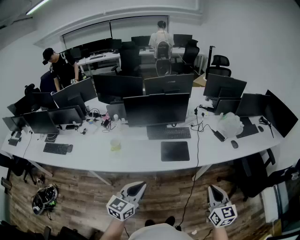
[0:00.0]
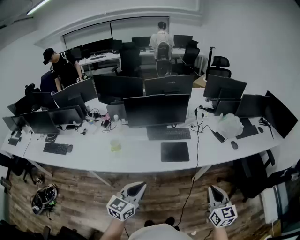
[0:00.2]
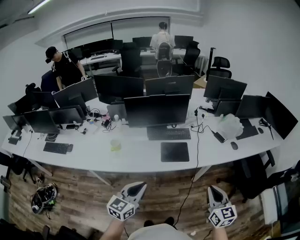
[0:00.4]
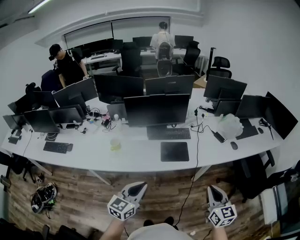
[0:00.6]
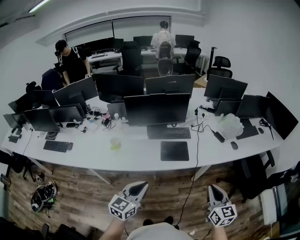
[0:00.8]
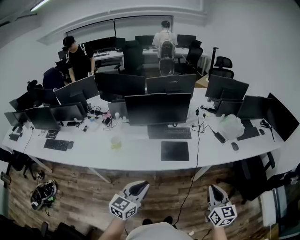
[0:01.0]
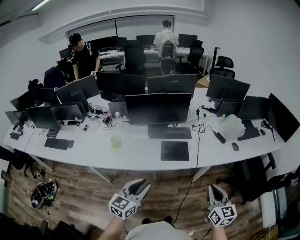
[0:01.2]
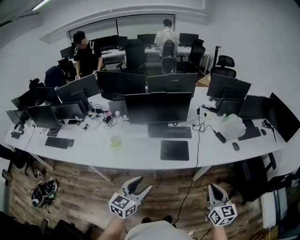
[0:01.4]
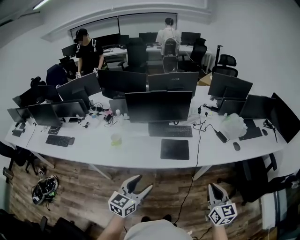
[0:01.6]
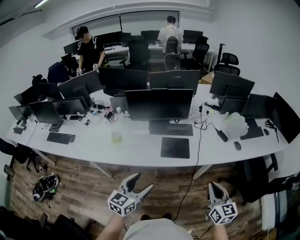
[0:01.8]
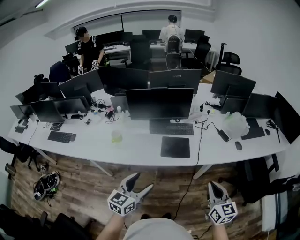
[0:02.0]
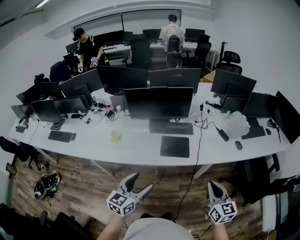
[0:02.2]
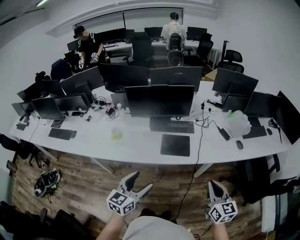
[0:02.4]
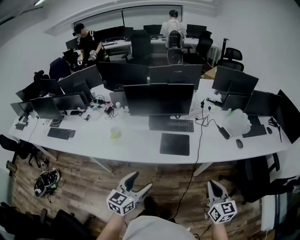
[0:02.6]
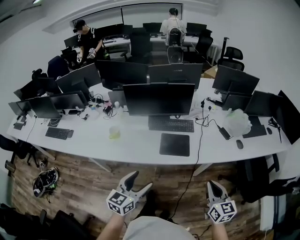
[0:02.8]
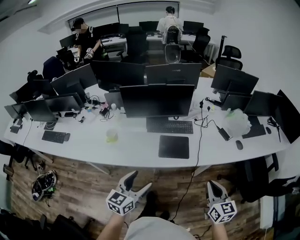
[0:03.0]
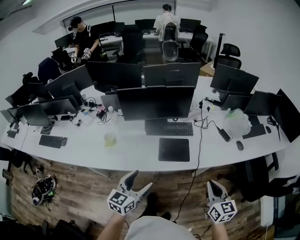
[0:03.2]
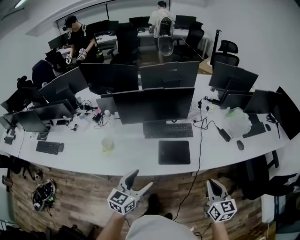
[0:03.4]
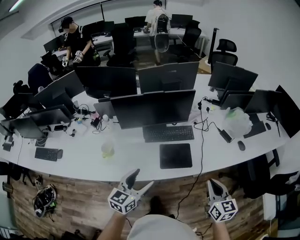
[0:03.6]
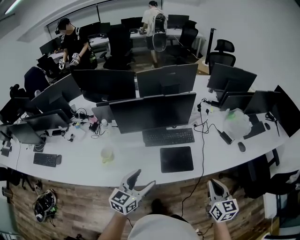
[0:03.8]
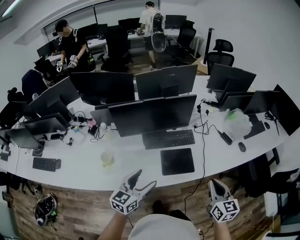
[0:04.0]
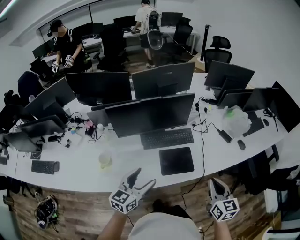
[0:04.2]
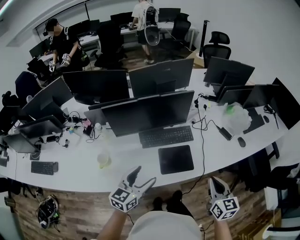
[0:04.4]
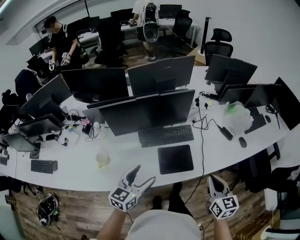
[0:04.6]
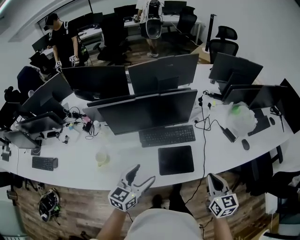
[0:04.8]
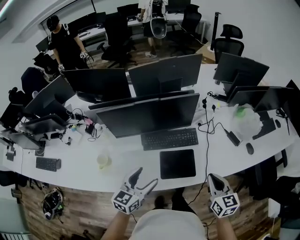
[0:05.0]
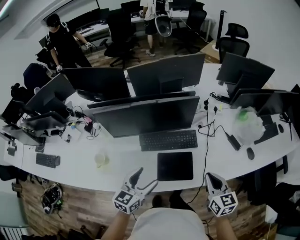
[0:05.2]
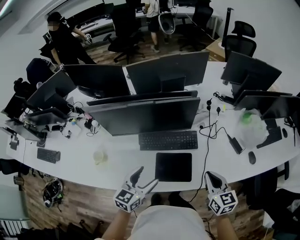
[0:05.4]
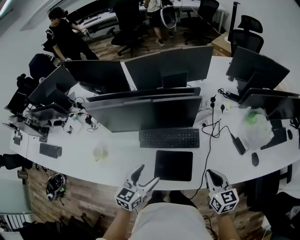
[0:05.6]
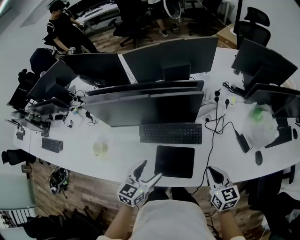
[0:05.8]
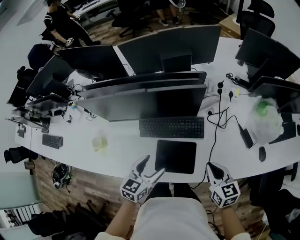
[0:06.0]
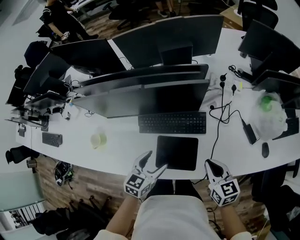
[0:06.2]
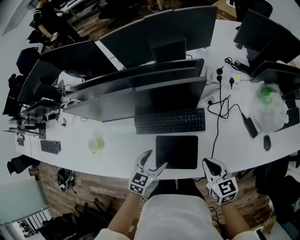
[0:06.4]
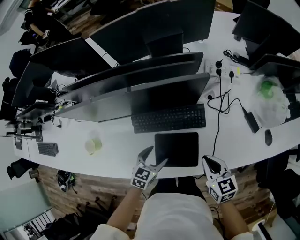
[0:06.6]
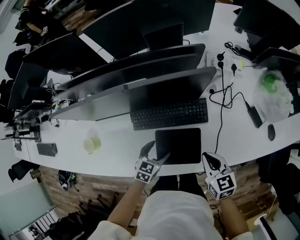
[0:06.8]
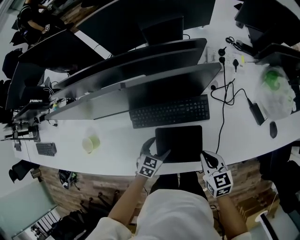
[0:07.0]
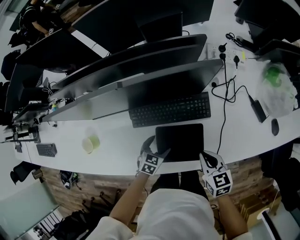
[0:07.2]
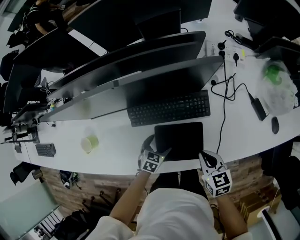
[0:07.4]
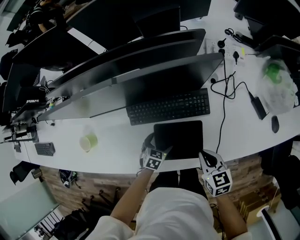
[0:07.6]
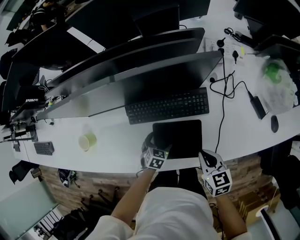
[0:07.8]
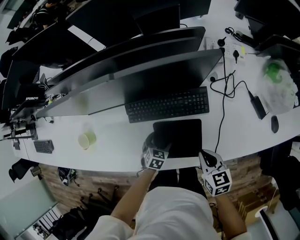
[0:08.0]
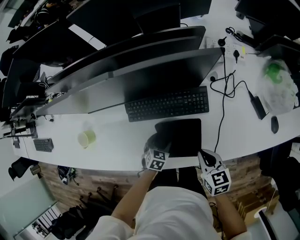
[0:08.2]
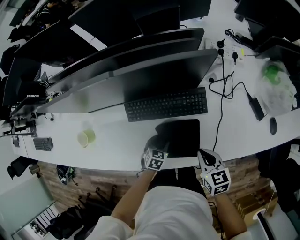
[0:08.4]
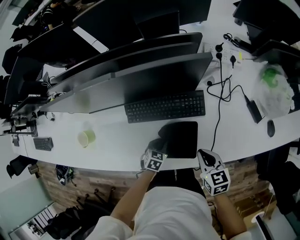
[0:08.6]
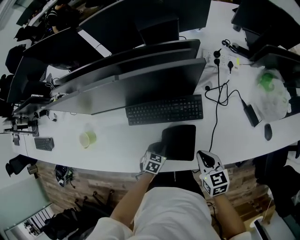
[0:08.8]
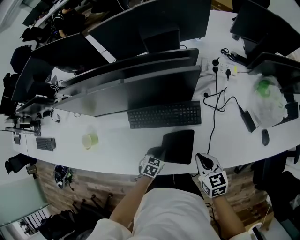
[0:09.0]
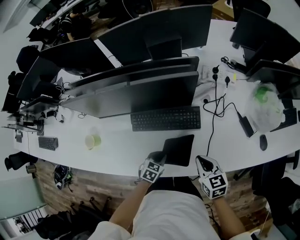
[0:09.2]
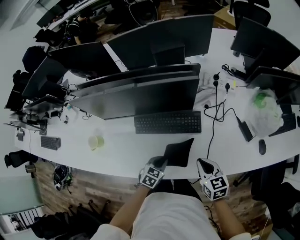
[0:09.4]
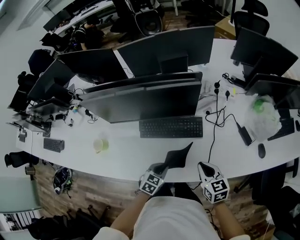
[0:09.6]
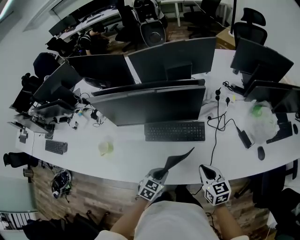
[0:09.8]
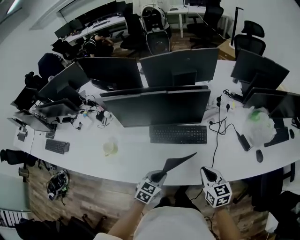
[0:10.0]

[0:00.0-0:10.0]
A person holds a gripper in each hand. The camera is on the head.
0:00.0 to 0:01.4: The left gripper opens up.
0:01.4 to 0:02.8: The grippers make only small movements.
0:02.8 to 0:04.2: The grippers both shift forward and to the left by approximately 20 cm.
0:04.2 to 0:05.8: The right gripper shifts some 20 cm forward and downward, and swivels roughly 30 degrees, while the left gripper is displaced forward, to the right and downward by some 20 cm.
0:05.8 to 0:07.2: The left gripper shifts approximately 25 cm downward, and turns by about 30 degrees; the right gripper goes approximately 15 cm downward and to the left.
0:07.2 to 0:08.6: The left gripper closes up.
0:08.6 to 0:10.0: The left gripper is displaced upward by roughly 25 cm, and turns by approximately 20 degrees. Meanwhile the right gripper shifts some 15 cm upward.

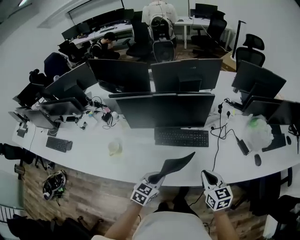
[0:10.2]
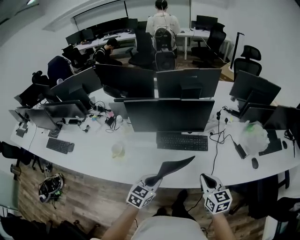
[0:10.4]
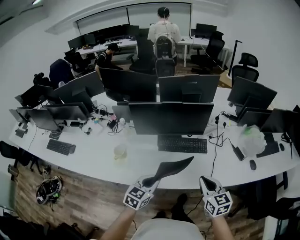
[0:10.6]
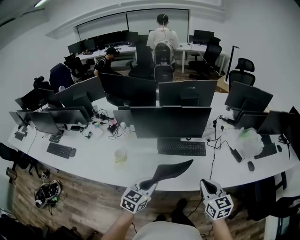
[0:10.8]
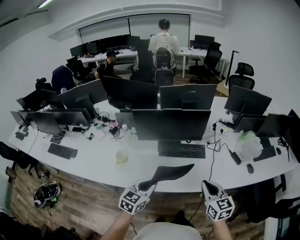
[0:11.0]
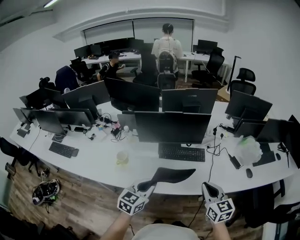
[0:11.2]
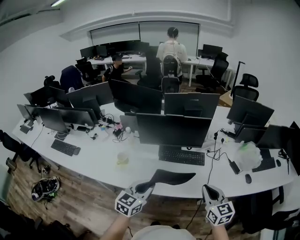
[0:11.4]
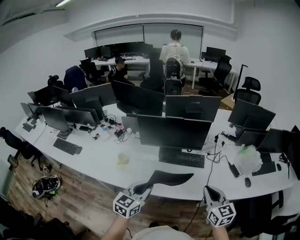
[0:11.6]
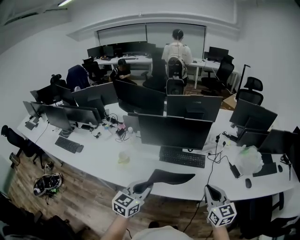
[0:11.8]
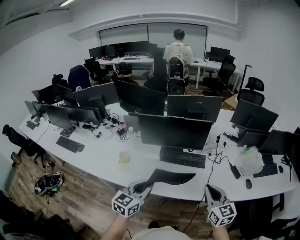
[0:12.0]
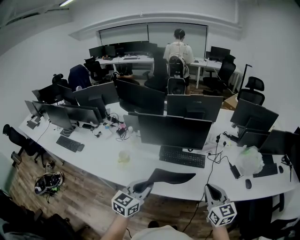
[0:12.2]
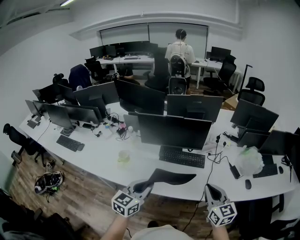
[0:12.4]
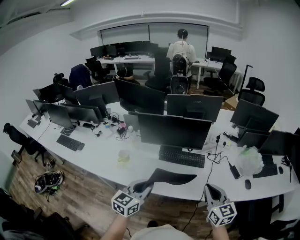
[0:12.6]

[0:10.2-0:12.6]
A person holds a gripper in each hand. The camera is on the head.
0:10.2 to 0:11.4: The left gripper heads upward, backward and to the left, covering approximately 20 cm, and turns by approximately 20 degrees; the right gripper heads upward and backward, covering about 15 cm.
0:11.4 to 0:12.6: The grippers move only a little.

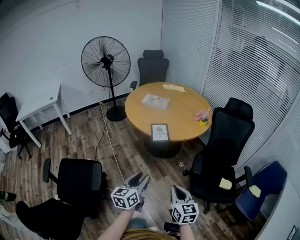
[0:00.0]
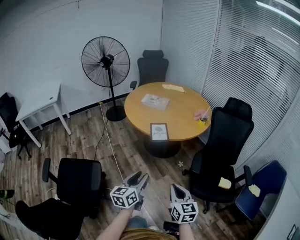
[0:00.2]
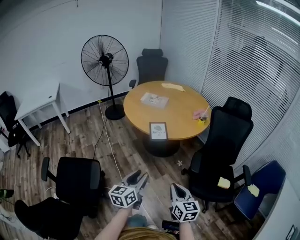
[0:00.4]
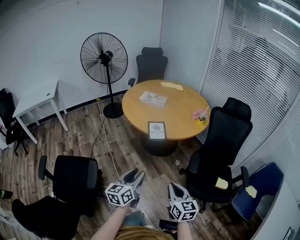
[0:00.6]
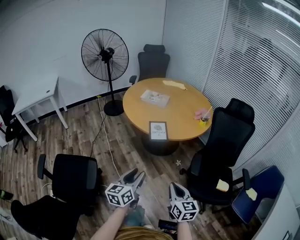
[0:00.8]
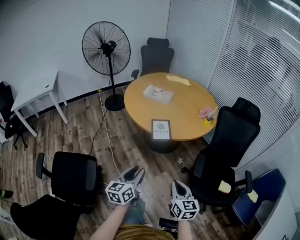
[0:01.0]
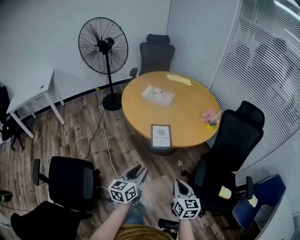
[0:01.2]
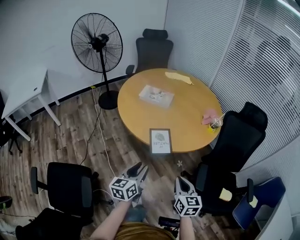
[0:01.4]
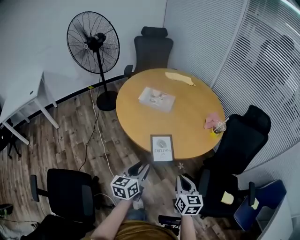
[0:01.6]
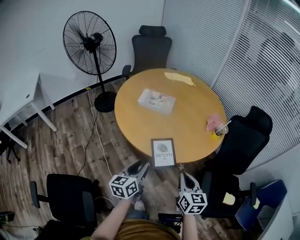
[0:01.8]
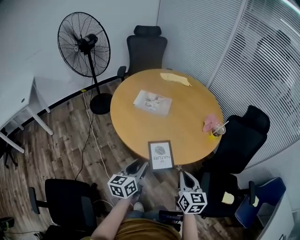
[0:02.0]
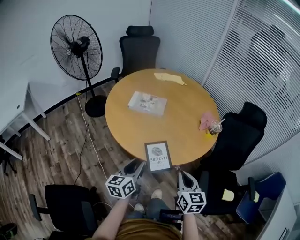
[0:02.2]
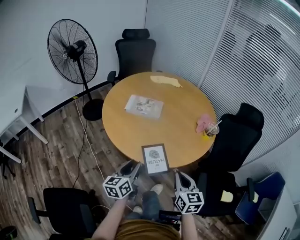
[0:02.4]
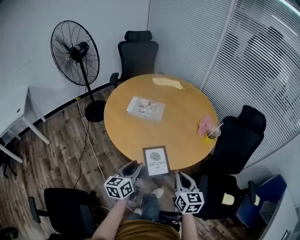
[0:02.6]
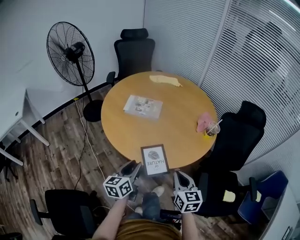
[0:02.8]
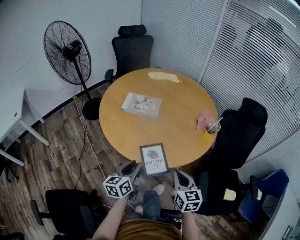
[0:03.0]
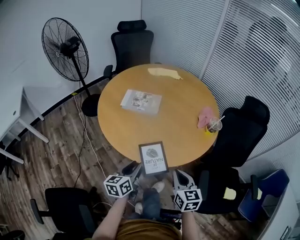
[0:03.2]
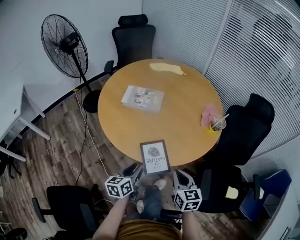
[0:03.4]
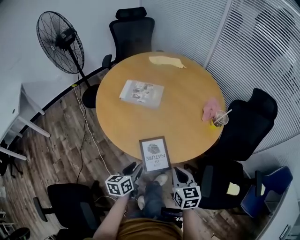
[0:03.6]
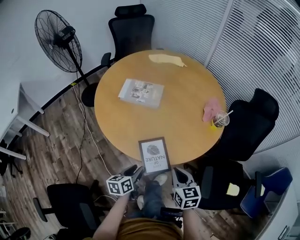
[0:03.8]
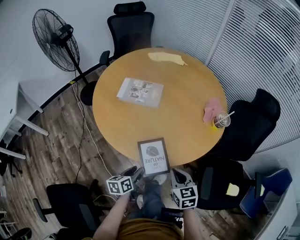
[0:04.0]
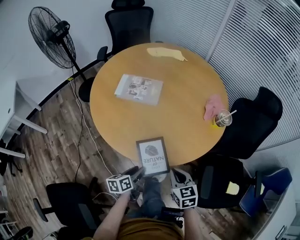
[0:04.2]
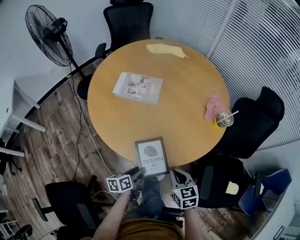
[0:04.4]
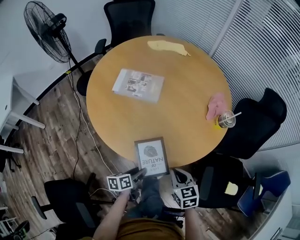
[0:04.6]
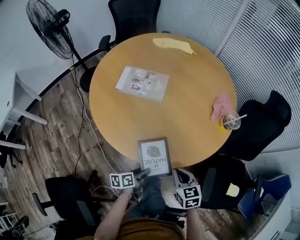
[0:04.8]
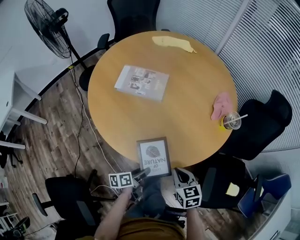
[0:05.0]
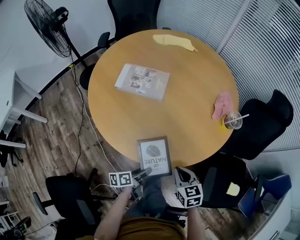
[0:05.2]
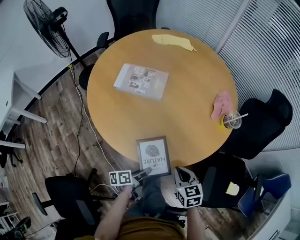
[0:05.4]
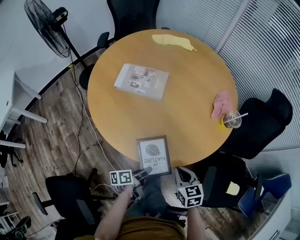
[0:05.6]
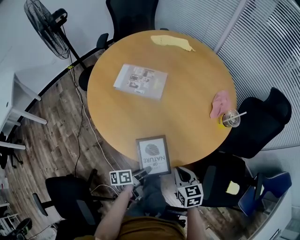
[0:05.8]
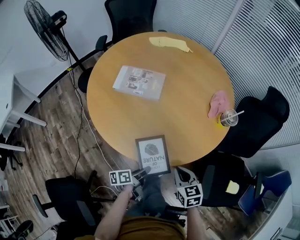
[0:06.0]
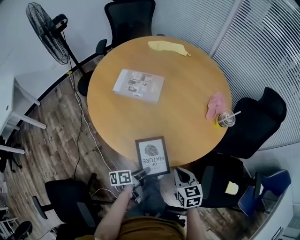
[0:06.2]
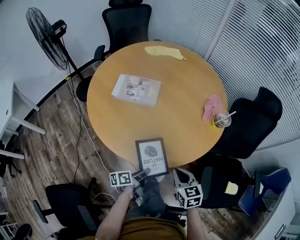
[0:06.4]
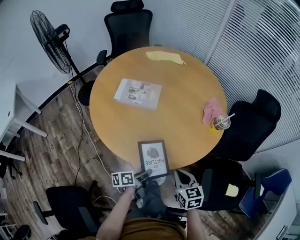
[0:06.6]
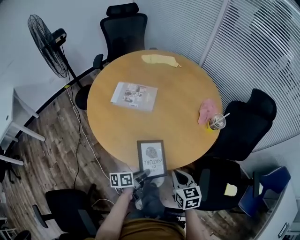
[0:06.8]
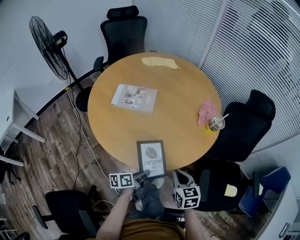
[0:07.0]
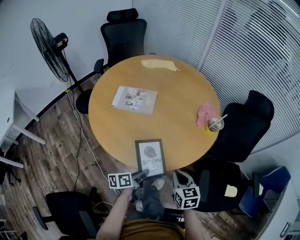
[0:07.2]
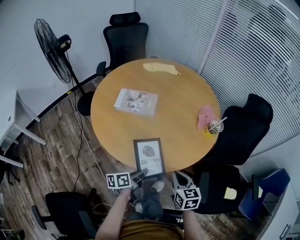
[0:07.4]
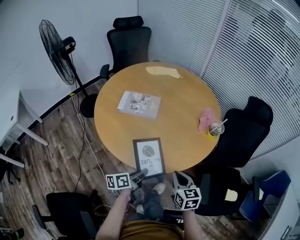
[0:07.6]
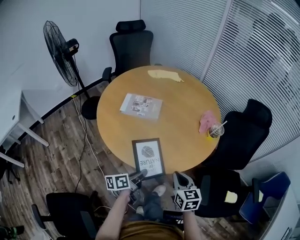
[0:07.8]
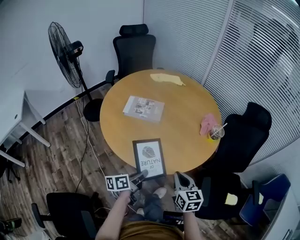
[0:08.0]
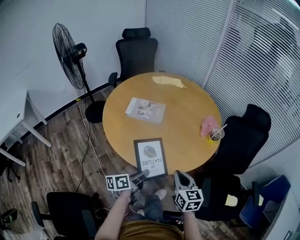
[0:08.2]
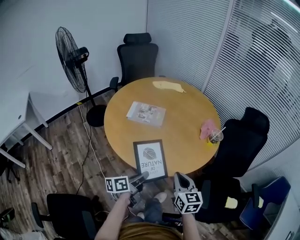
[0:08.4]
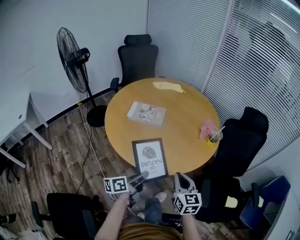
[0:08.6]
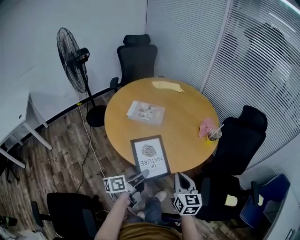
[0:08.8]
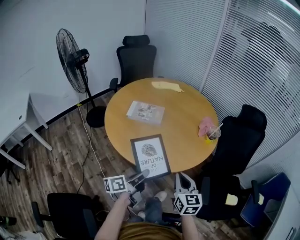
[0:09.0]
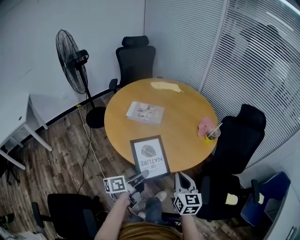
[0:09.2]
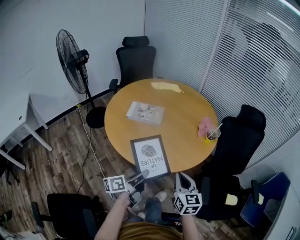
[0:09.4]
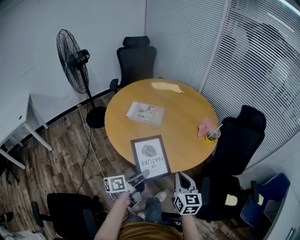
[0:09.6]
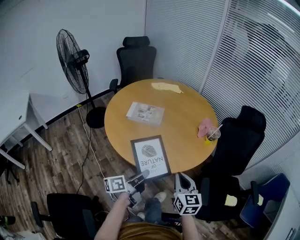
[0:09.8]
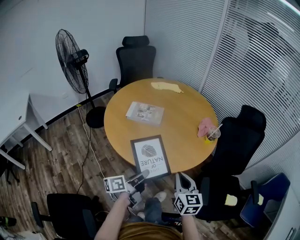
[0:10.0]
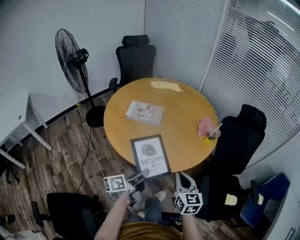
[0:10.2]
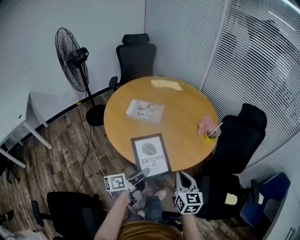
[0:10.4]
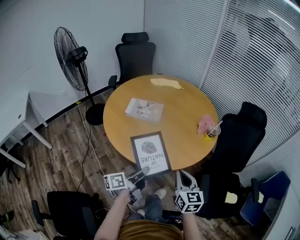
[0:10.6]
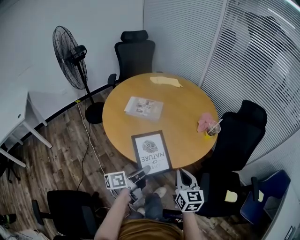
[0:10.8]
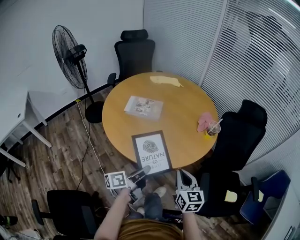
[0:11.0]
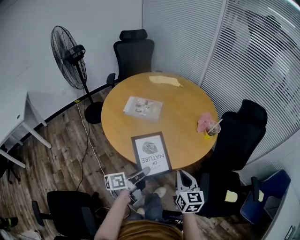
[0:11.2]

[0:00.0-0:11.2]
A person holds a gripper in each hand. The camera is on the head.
0:00.0 to 0:01.6: The two grippers go approximately 30 cm forward.
0:01.6 to 0:03.2: Both grippers move forward, about 10 cm.
0:03.2 to 0:04.8: The left gripper heads downward, covering approximately 20 cm, and turns by roughly 40 degrees. The right gripper is displaced downward and forward by approximately 15 cm, and changes its angle by roughly 20 degrees.
0:04.8 to 0:06.4: The left gripper closes up.
0:06.4 to 0:08.0: Both grippers travel together upward, roughly 10 cm.
0:08.0 to 0:09.6: Both grippers travel together upward, about 5 cm.
0:09.6 to 0:11.2: The grippers move only a little.
